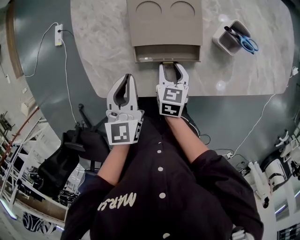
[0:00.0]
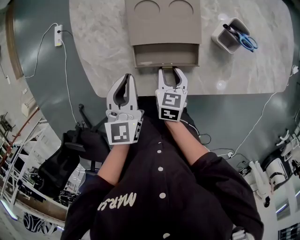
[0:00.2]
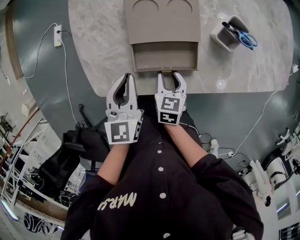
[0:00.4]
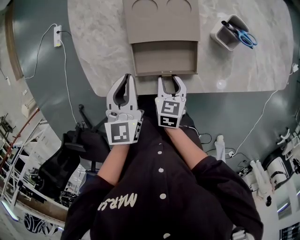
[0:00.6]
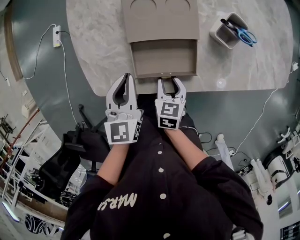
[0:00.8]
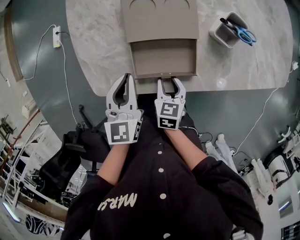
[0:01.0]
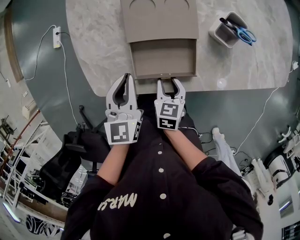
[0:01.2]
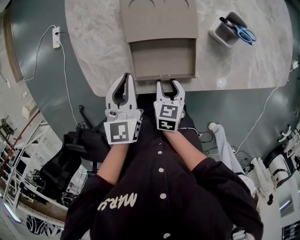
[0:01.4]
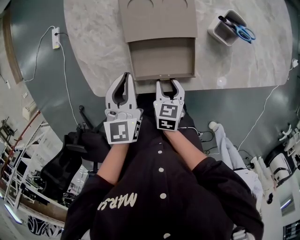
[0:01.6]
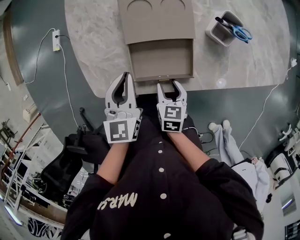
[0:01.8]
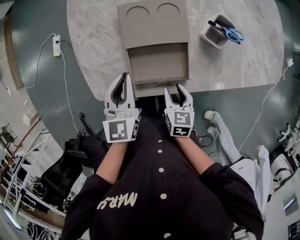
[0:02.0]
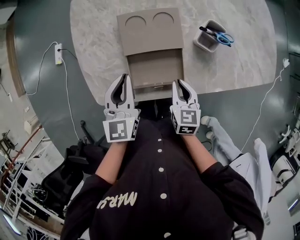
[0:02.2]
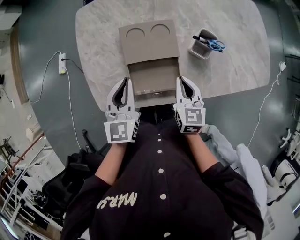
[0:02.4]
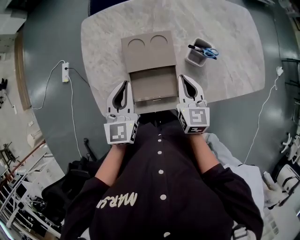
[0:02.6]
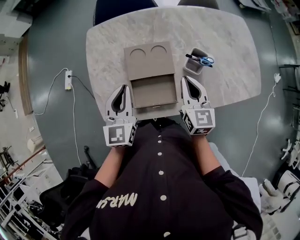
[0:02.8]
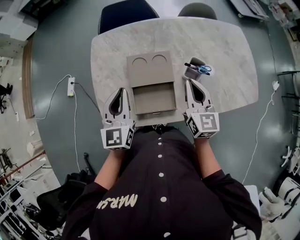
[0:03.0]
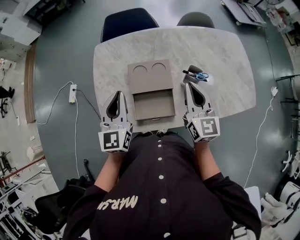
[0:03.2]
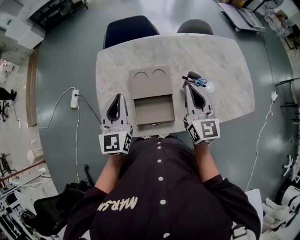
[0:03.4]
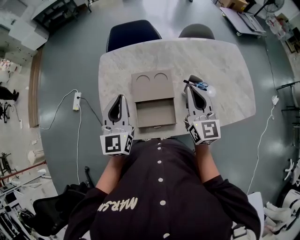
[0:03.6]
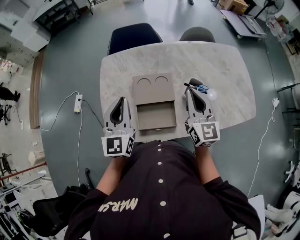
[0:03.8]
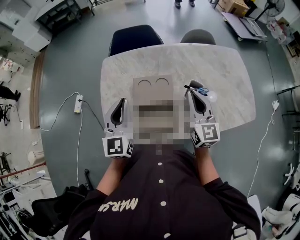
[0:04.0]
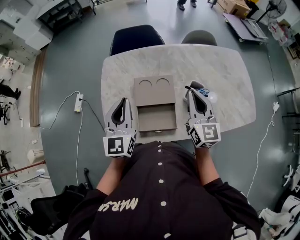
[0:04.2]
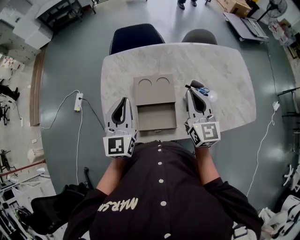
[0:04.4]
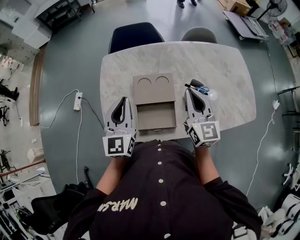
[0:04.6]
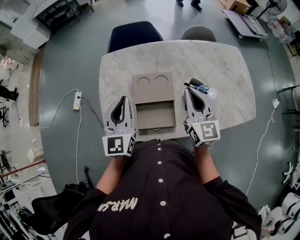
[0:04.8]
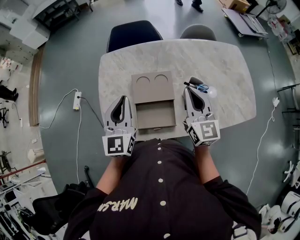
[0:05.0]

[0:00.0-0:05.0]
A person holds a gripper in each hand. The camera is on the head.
0:00.0 to 0:01.6: The right gripper shifts about 10 cm backward.
0:01.6 to 0:03.4: The right gripper heads upward, covering about 35 cm, points its fingers some 50 degrees further upward, and closes up. Meanwhile the left gripper travels upward by some 20 cm, and changes its angle by some 20 degrees.
0:03.4 to 0:05.0: There are only small adjustments of the grippers.

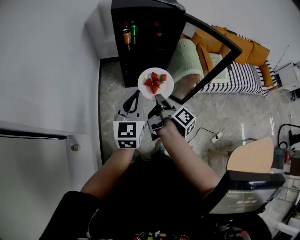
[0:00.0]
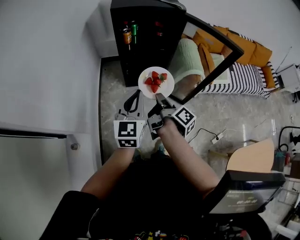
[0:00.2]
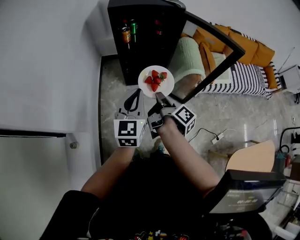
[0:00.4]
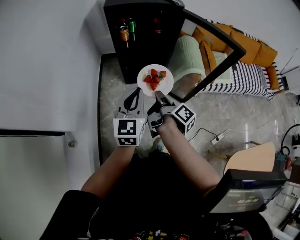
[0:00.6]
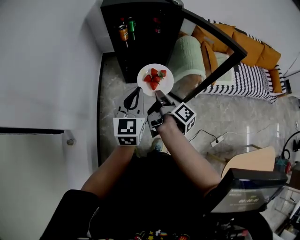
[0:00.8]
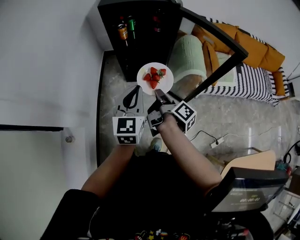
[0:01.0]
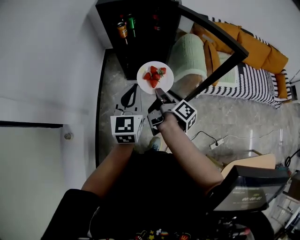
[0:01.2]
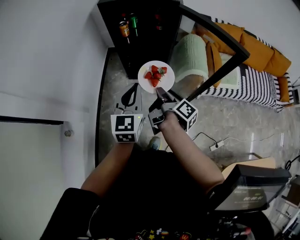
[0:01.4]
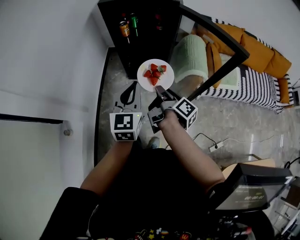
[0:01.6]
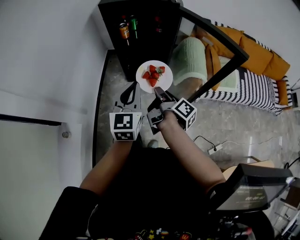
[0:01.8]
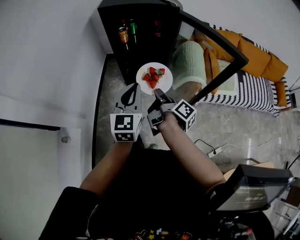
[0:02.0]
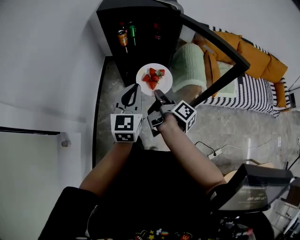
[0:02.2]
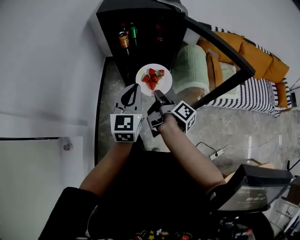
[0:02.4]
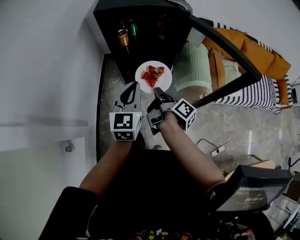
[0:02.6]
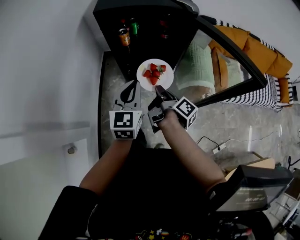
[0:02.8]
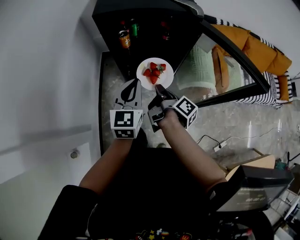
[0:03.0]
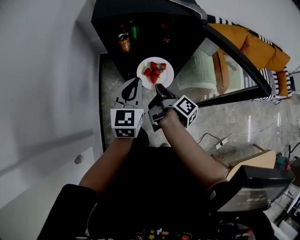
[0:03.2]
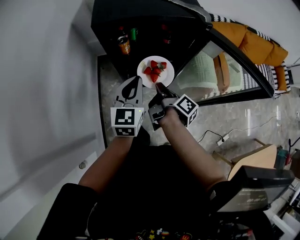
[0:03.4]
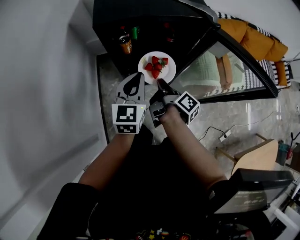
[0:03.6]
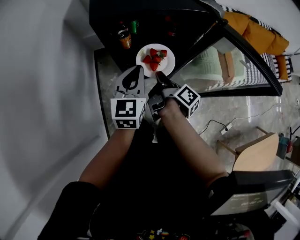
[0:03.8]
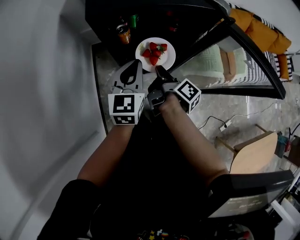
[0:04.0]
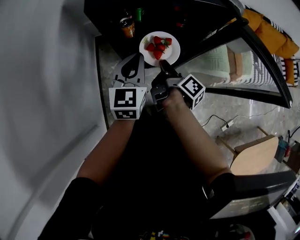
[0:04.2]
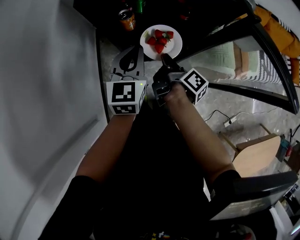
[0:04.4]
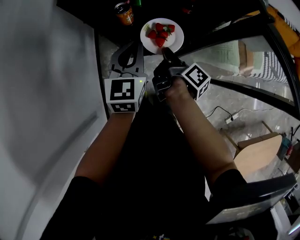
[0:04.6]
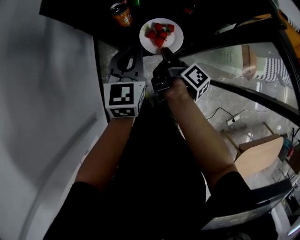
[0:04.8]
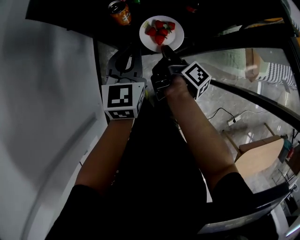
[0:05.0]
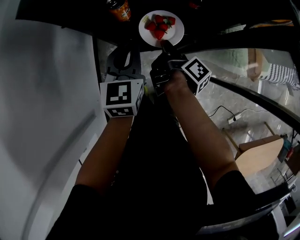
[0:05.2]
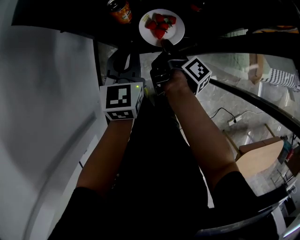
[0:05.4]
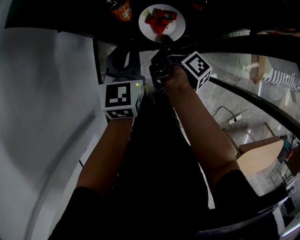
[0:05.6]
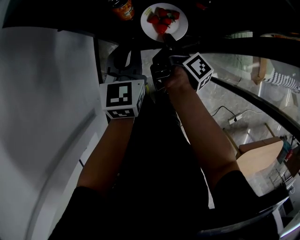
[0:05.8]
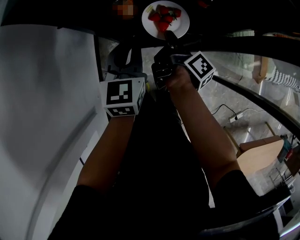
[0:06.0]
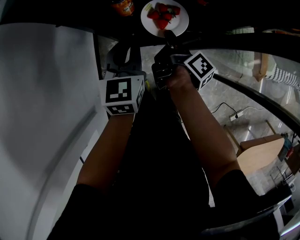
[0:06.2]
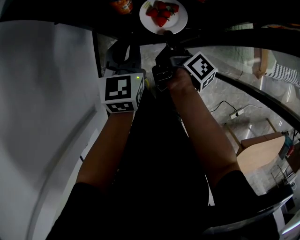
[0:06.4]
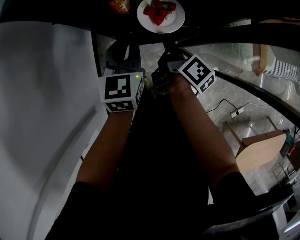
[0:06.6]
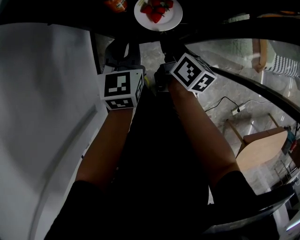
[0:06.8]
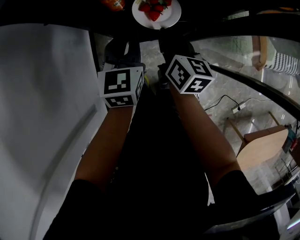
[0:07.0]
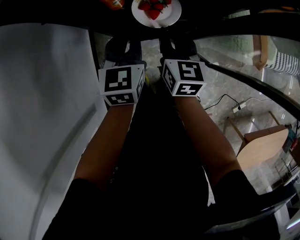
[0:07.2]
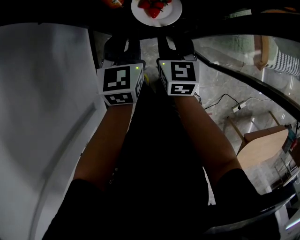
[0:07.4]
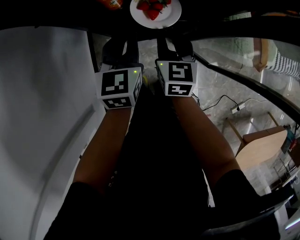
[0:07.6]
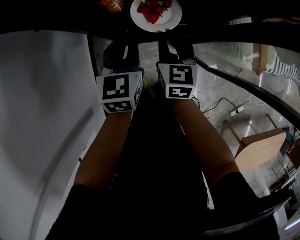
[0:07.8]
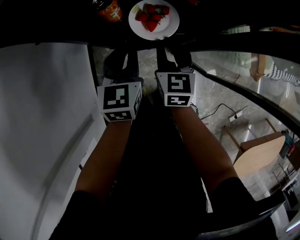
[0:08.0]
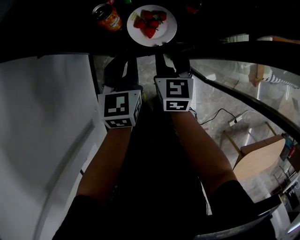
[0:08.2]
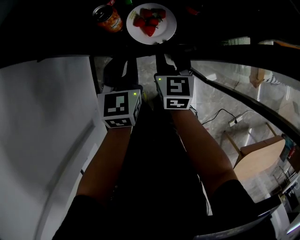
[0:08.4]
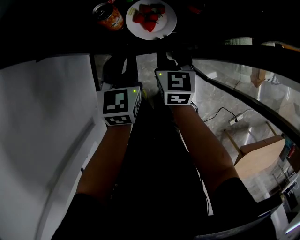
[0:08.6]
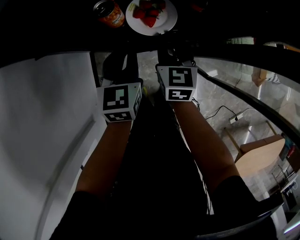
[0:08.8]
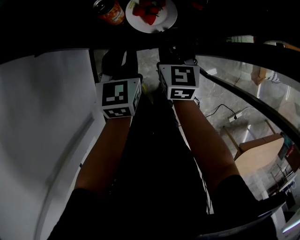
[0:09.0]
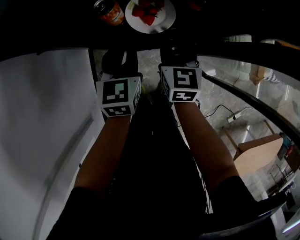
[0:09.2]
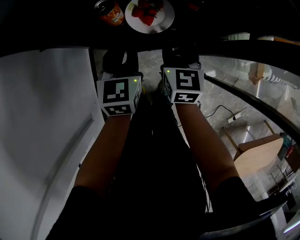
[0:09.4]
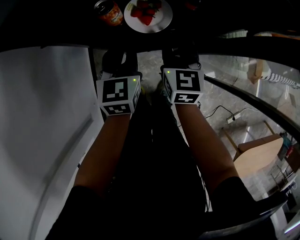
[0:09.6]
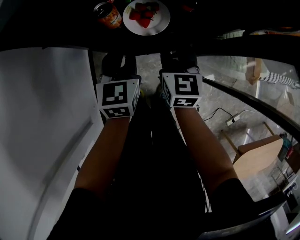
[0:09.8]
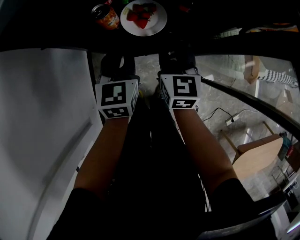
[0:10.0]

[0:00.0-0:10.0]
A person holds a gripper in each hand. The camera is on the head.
0:00.0 to 0:01.4: The left gripper ends up some 15 cm from where it was.
0:01.4 to 0:02.8: The left gripper ends up about 15 cm from where it was.
0:02.8 to 0:04.2: The left gripper changes place by some 20 cm.
0:04.2 to 0:05.8: The left gripper shifts some 10 cm downward.

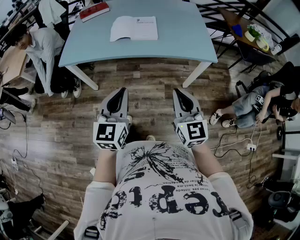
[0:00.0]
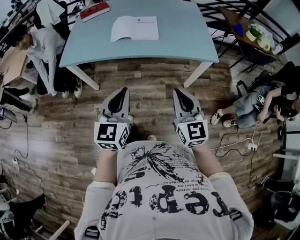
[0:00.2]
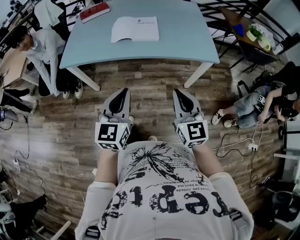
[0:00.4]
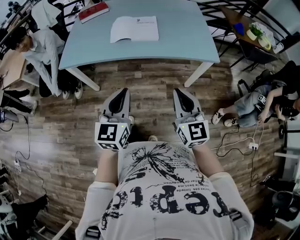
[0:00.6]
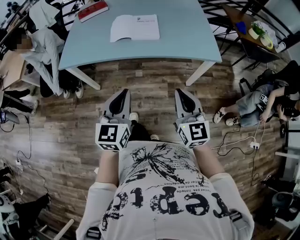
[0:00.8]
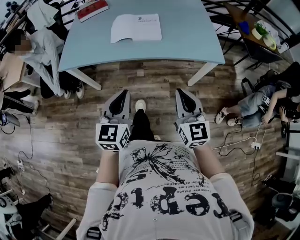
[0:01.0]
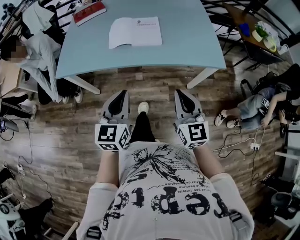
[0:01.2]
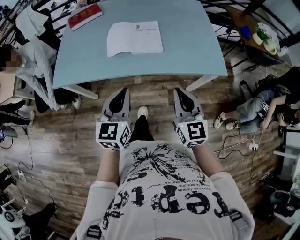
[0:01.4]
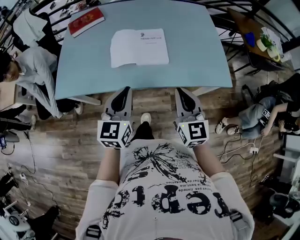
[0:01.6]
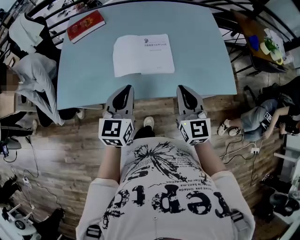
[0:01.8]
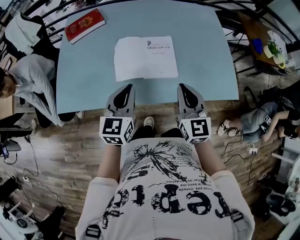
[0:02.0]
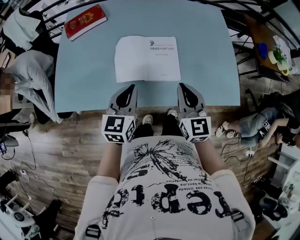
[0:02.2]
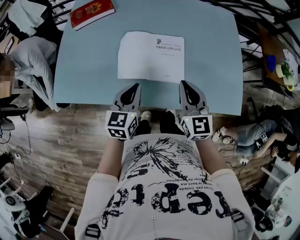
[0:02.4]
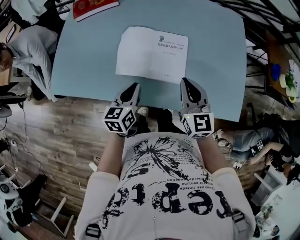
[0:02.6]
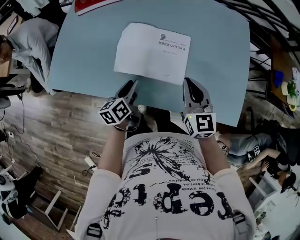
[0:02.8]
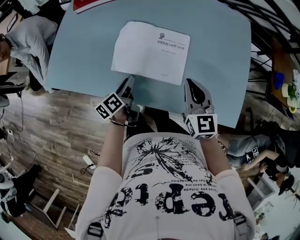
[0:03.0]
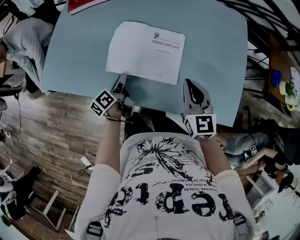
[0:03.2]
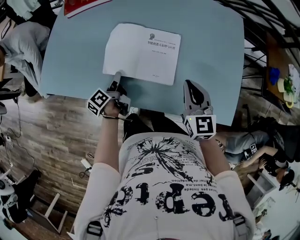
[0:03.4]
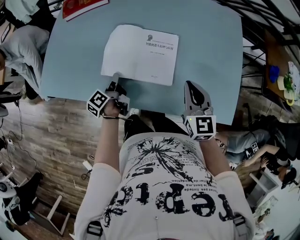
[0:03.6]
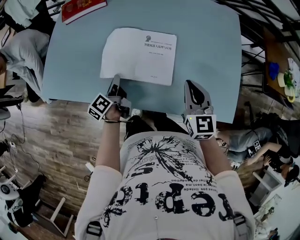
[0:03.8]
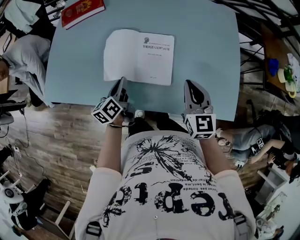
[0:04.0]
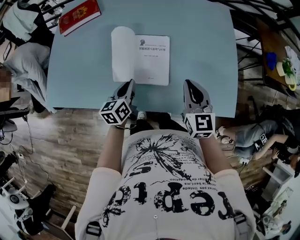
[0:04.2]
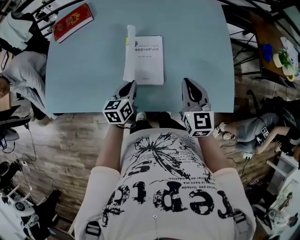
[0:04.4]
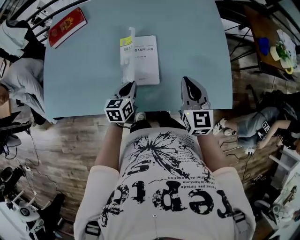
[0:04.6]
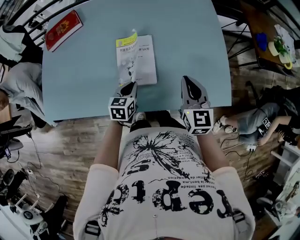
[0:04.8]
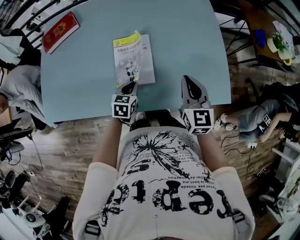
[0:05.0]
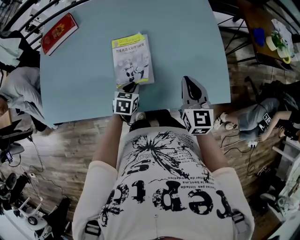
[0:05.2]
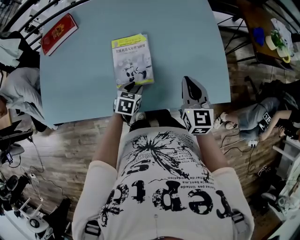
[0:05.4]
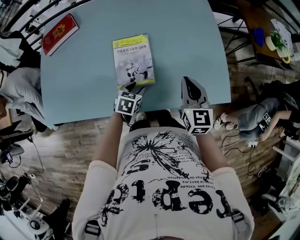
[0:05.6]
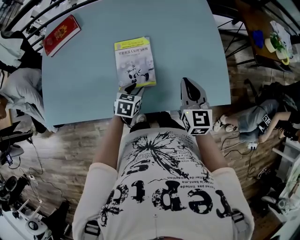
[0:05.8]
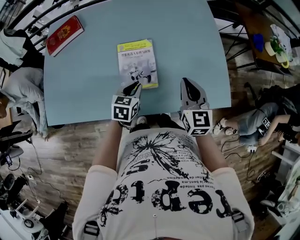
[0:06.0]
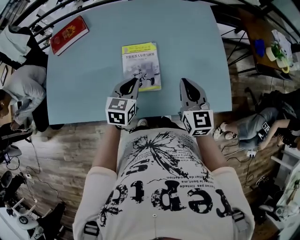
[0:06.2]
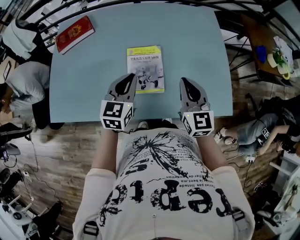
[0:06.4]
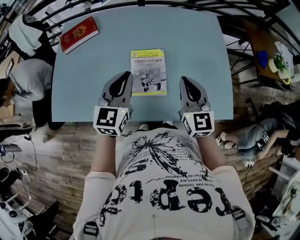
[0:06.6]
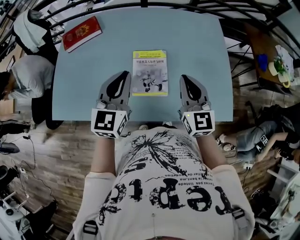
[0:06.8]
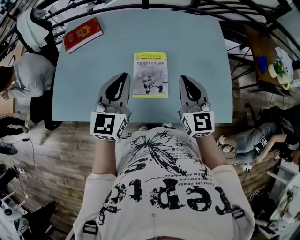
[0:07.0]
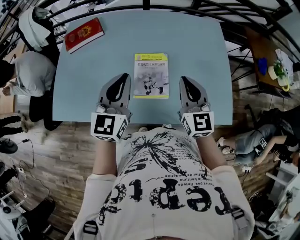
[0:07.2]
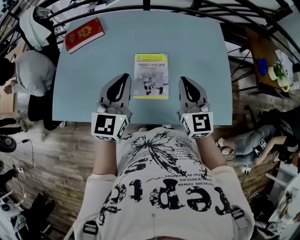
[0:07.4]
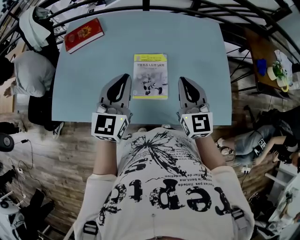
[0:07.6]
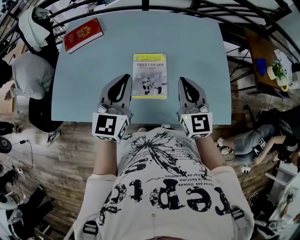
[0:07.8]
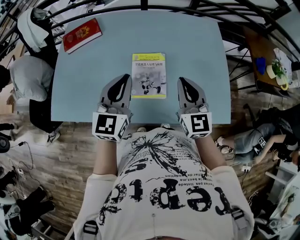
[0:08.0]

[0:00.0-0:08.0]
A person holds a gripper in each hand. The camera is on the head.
0:00.0 to 0:01.6: Both grippers move forward, approximately 30 cm.
0:01.6 to 0:03.2: The left gripper moves downward and forward, approximately 30 cm, rolls counterclockwise, seen from behind, by some 70 degrees, and opens up; the right gripper shifts about 25 cm forward.
0:03.2 to 0:04.8: The two grippers go approximately 15 cm to the right. The left gripper rotates around the line of its fingers by approximately 60 degrees, clockwise from behind, and closes.
0:04.8 to 0:06.4: The left gripper is displaced upward by some 15 cm, rotates about 20 degrees, and opens, then closes again, while the right gripper shifts by about 5 cm.
0:06.4 to 0:08.0: The left gripper goes approximately 10 cm upward, while the right gripper changes place by roughly 5 cm.

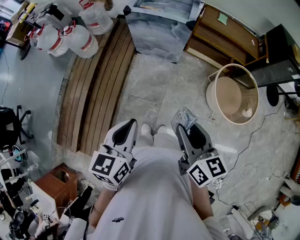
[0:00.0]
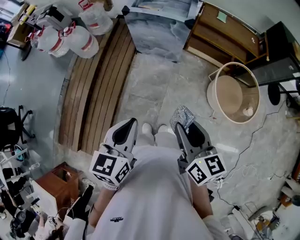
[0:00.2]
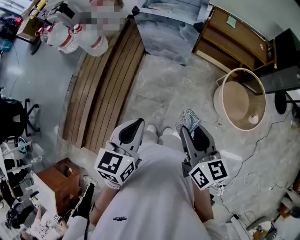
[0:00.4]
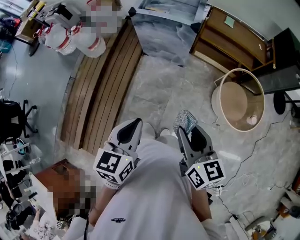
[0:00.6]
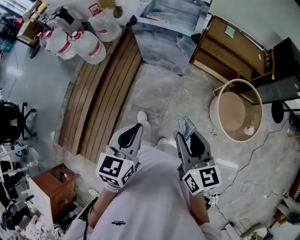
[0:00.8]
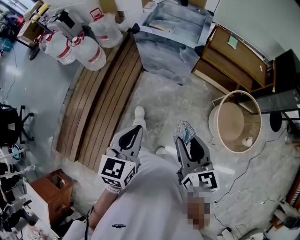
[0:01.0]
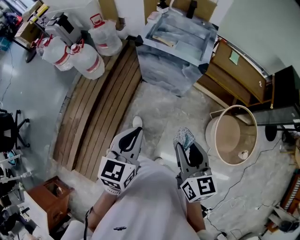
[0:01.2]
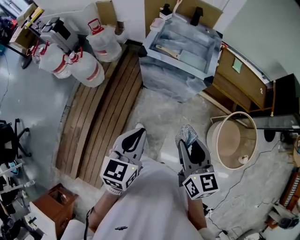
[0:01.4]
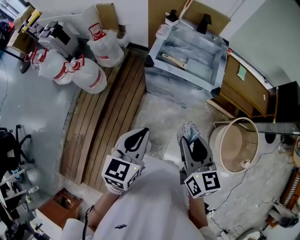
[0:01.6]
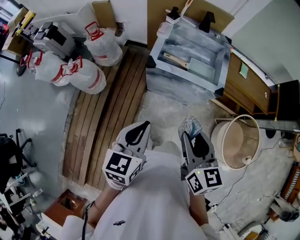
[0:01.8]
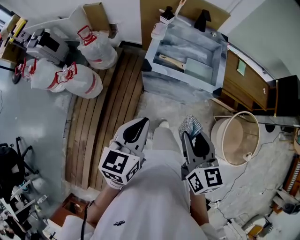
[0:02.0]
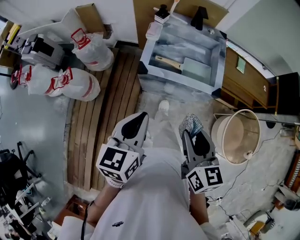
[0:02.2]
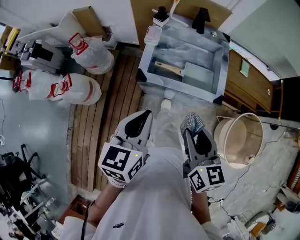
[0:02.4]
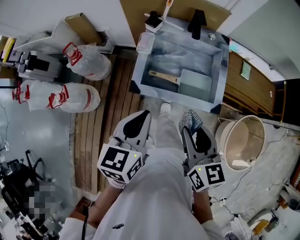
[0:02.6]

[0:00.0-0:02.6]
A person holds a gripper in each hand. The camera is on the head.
0:00.0 to 0:01.2: Both grippers move forward, about 20 cm.
0:01.2 to 0:02.6: Both grippers are carried forward, some 40 cm.
